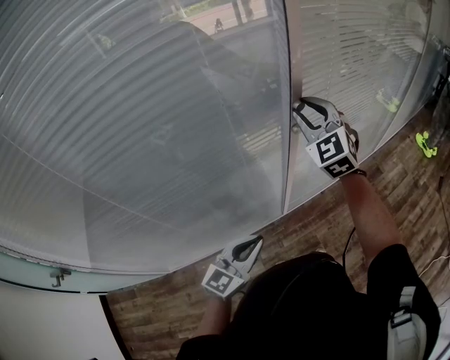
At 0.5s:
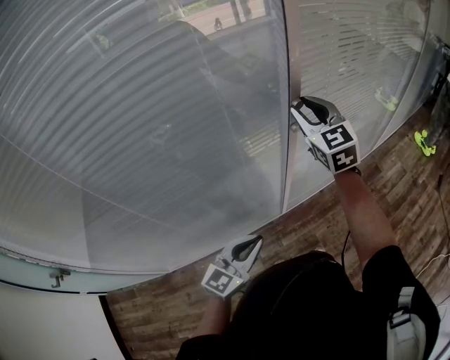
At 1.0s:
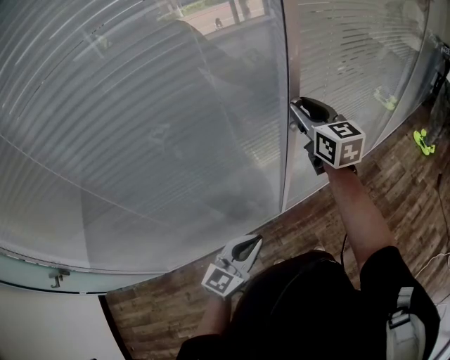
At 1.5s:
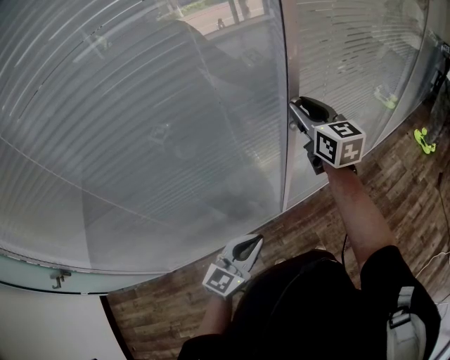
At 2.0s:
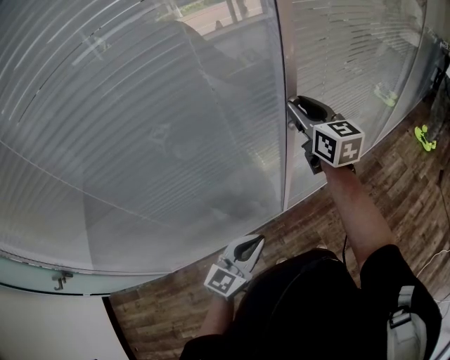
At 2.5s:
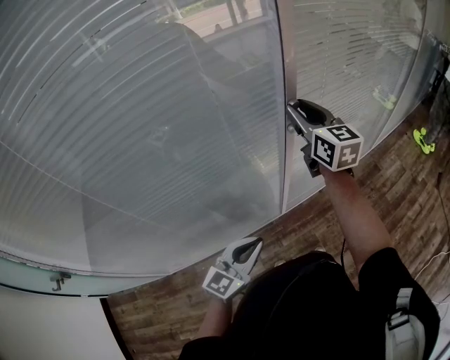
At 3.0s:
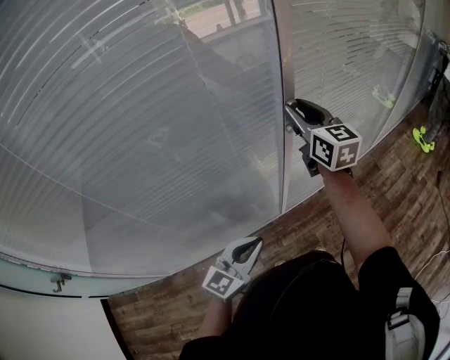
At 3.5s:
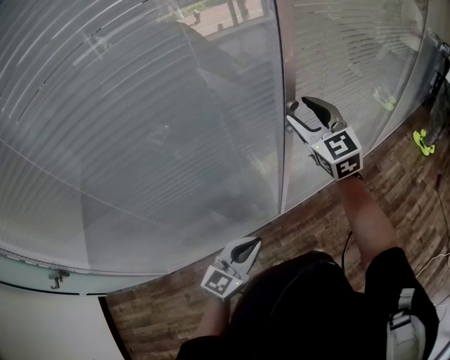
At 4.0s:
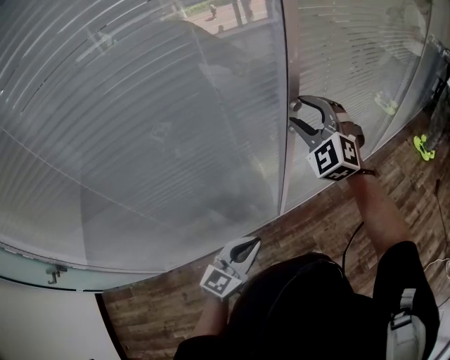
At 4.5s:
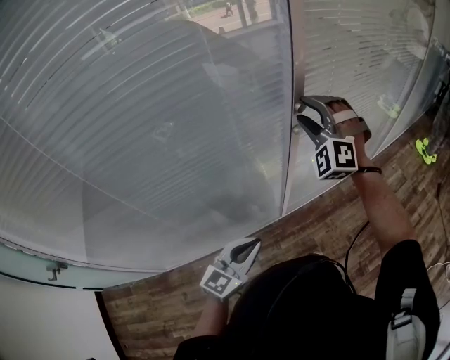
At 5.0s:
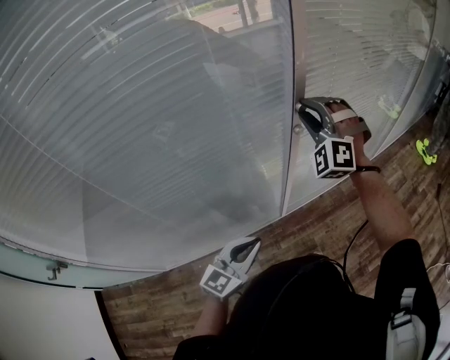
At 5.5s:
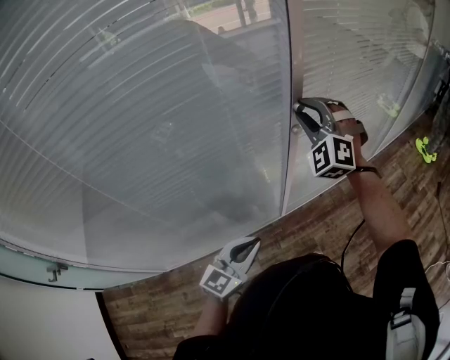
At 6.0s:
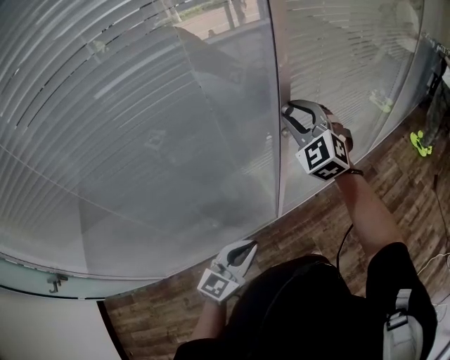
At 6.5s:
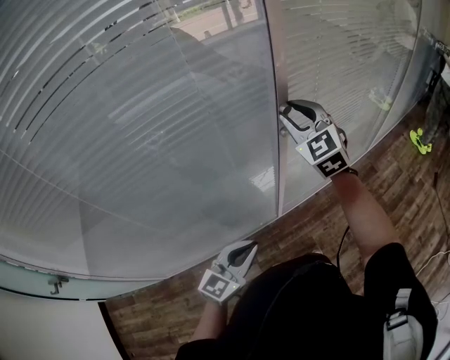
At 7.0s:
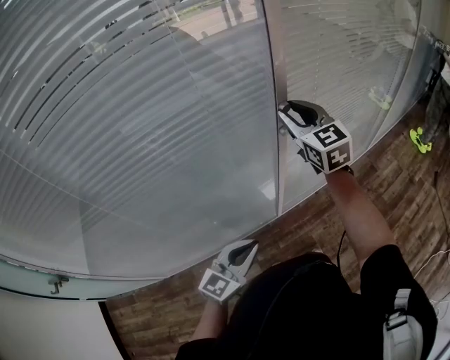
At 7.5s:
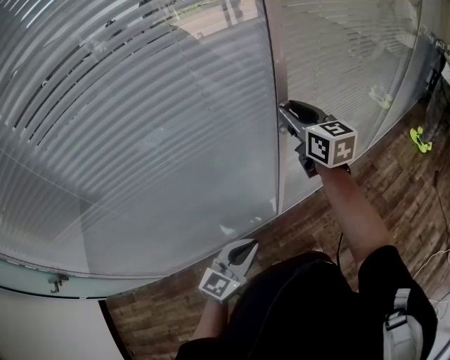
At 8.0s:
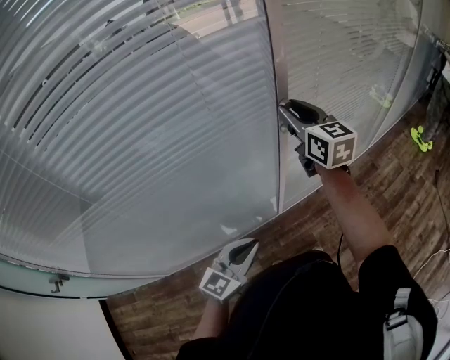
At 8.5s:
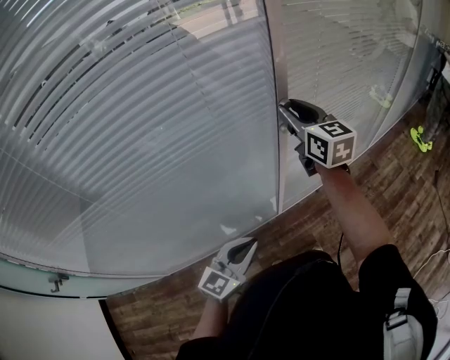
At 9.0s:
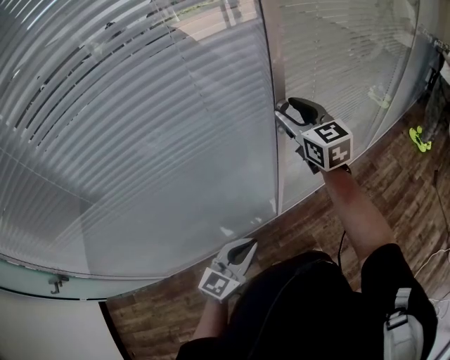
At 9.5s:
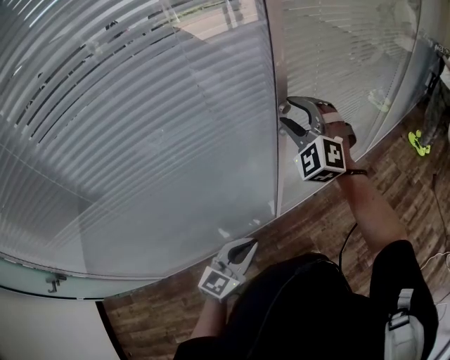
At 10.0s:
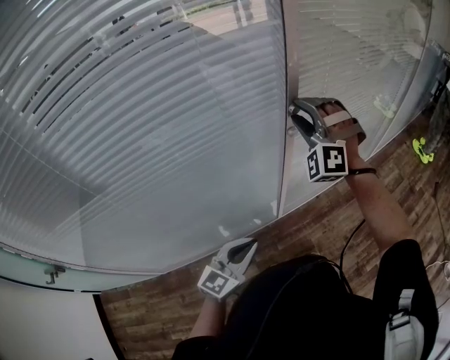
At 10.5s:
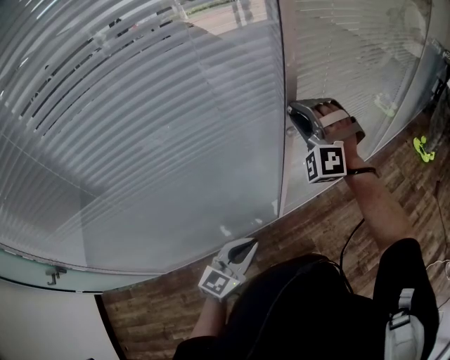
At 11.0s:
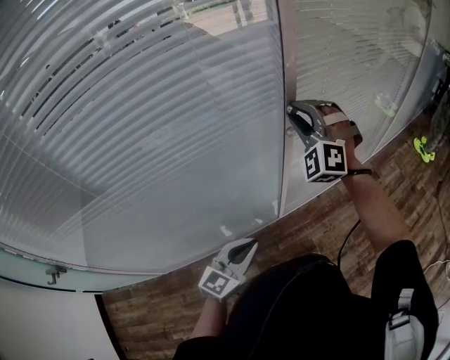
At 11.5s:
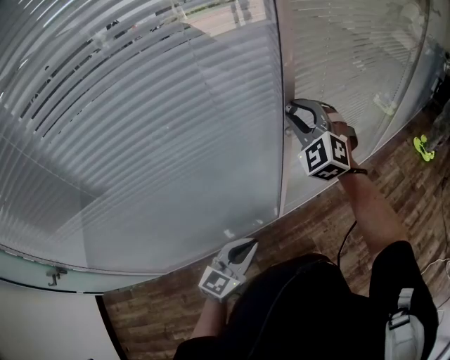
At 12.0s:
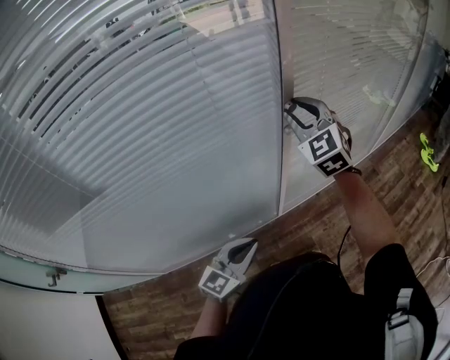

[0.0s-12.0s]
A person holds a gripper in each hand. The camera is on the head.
0.0s to 2.0s: The right gripper rotates around the line of its fingers by roughly 50 degrees, clockwise from behind.
2.0s to 4.0s: The right gripper rolls counterclockwise, seen from behind, by about 70 degrees, and opens.
4.0s to 6.0s: The right gripper closes its fingers.
6.0s to 8.0s: The right gripper rotates around the line of its fingers by some 60 degrees, clockwise from behind.
8.0s to 10.0s: The right gripper rotates around the line of its fingers by about 90 degrees, counterclockwise from behind.
10.0s to 12.0s: The right gripper rolls clockwise, seen from behind, by some 50 degrees.

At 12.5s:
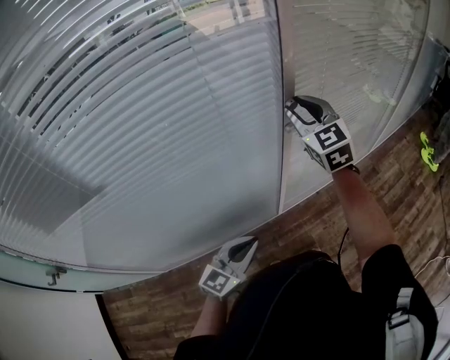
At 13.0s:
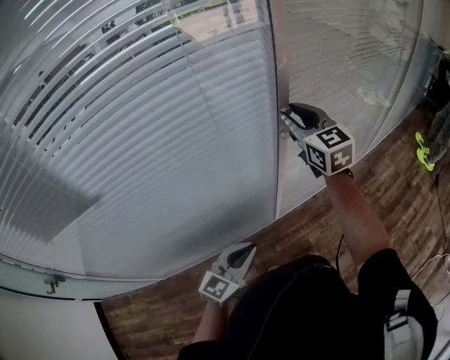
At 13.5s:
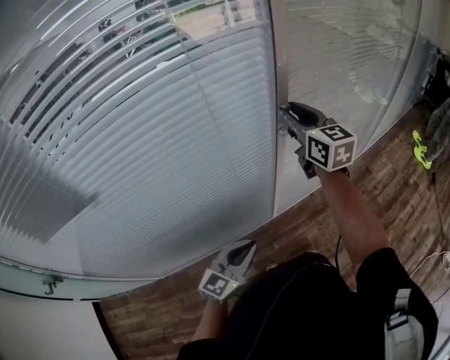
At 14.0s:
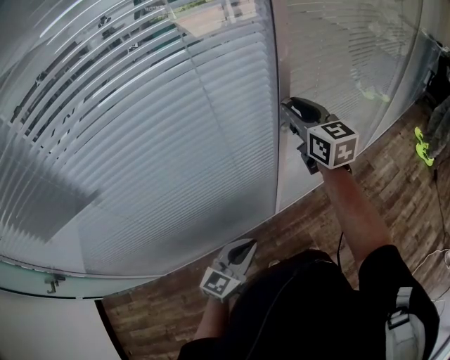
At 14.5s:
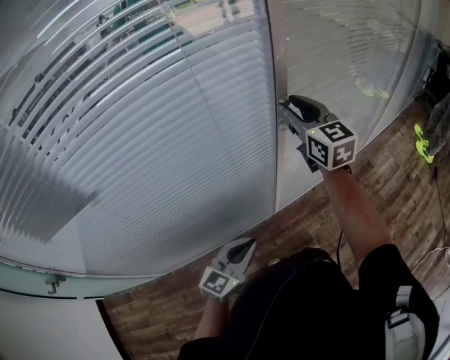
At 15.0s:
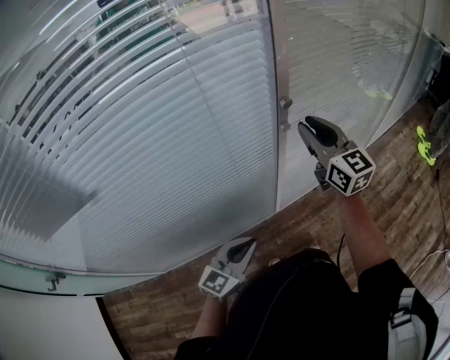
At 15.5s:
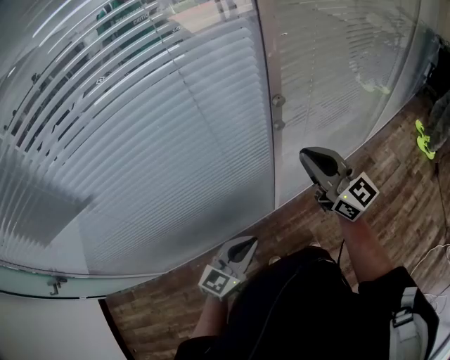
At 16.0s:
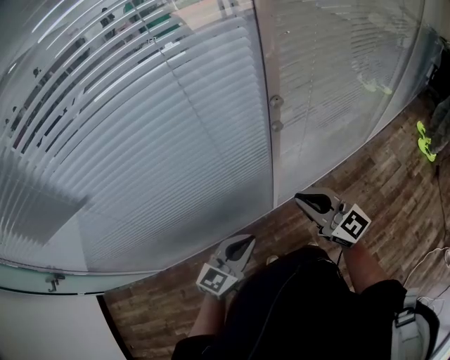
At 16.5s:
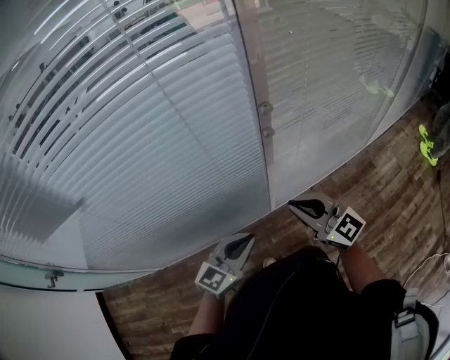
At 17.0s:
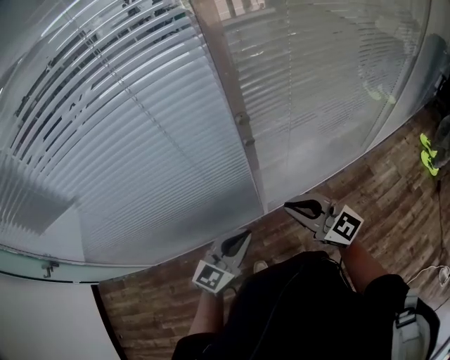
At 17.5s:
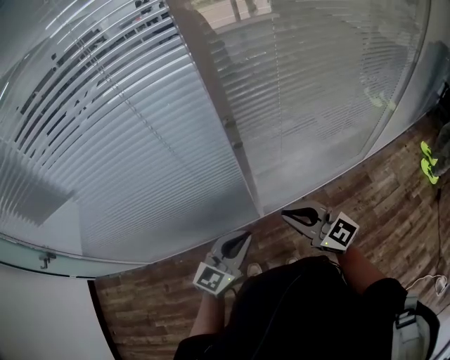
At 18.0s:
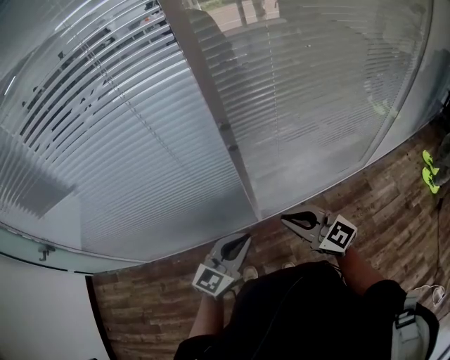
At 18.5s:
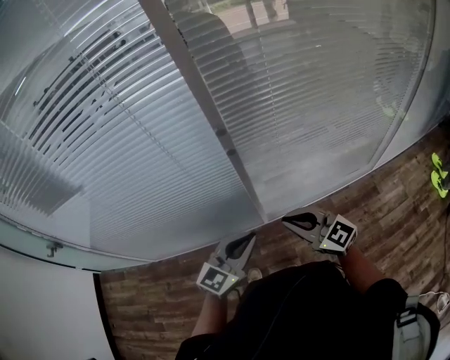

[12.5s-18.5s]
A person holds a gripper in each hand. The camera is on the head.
12.5s to 14.5s: The right gripper rotates some 20 degrees.
14.5s to 16.5s: The left gripper moves to the right, approximately 5 cm. The right gripper goes approximately 25 cm backward and downward, rotates roughly 30 degrees, and closes.
16.5s to 18.5s: The two grippers go approximately 10 cm to the right.

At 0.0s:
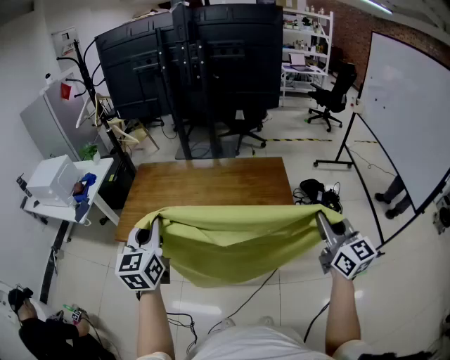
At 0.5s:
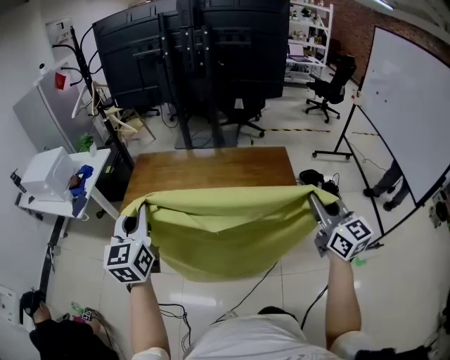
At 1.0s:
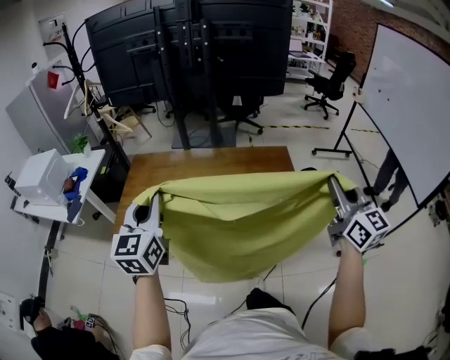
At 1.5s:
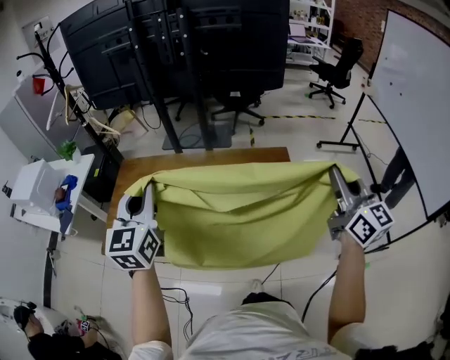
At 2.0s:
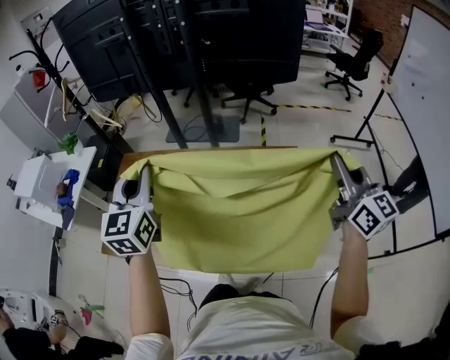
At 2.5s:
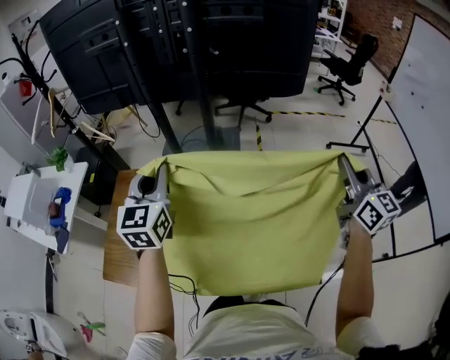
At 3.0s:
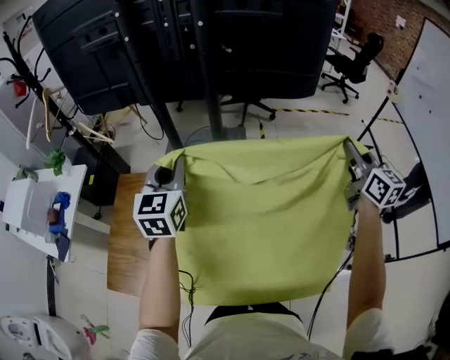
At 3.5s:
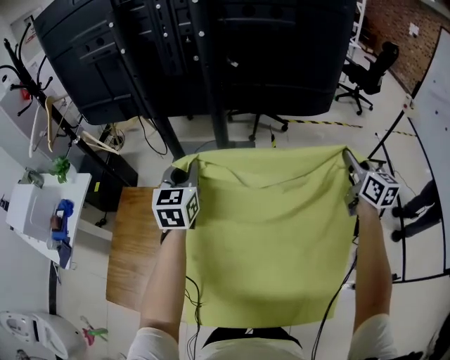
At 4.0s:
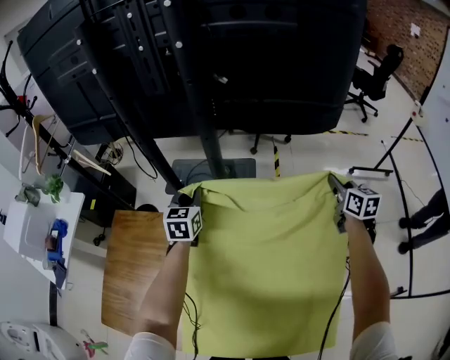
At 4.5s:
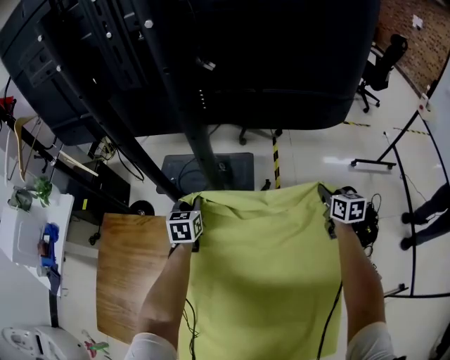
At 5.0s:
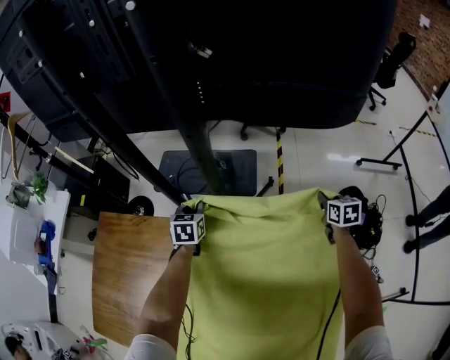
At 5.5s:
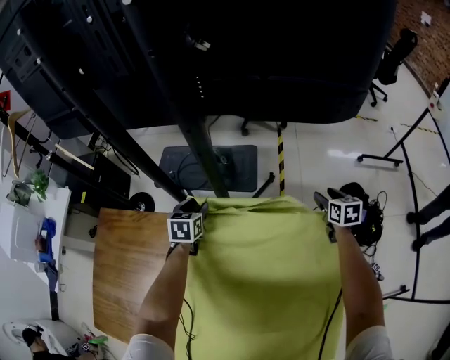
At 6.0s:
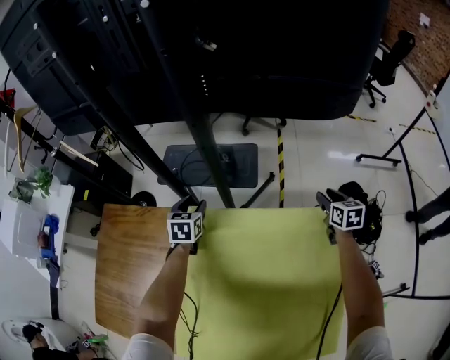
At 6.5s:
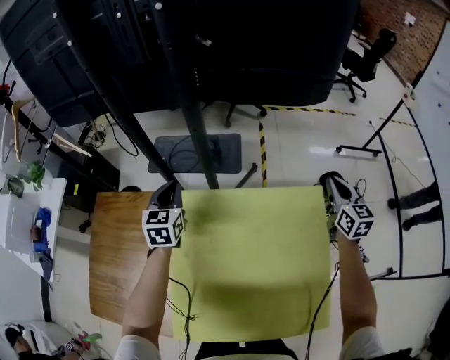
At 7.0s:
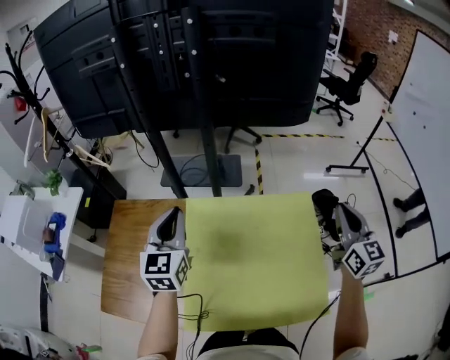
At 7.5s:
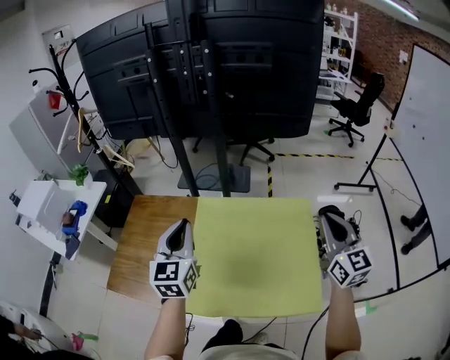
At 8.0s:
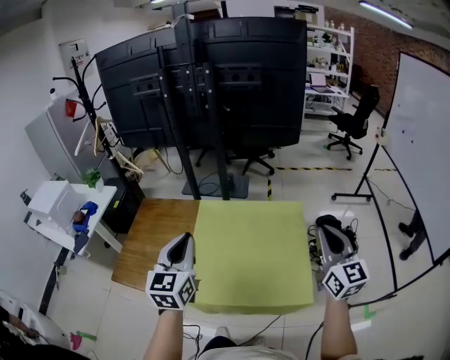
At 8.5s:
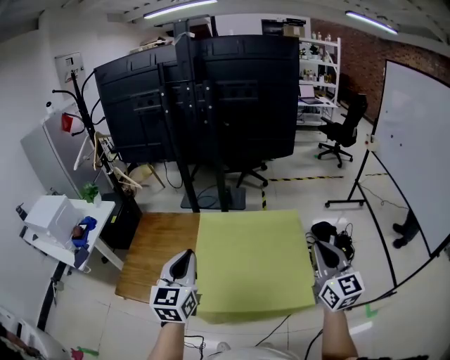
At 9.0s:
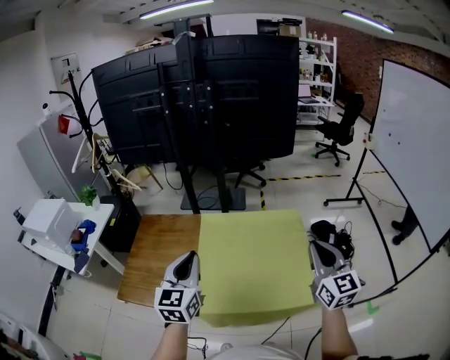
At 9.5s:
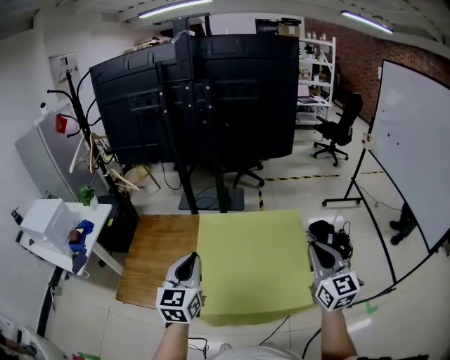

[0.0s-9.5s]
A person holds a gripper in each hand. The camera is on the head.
0.0s to 2.0s: The grippers both shift forward by some 30 cm.
2.0s to 4.0s: Both grippers move forward and downward, roughly 50 cm. The right gripper turns by about 30 degrees, while the left gripper turns by approximately 20 degrees.
4.0s to 5.5s: Both grippers travel together downward, roughly 20 cm. The left gripper turns by about 20 degrees, and opens its fingers, while the right gripper changes its angle by some 20 degrees, and opens.
5.5s to 7.5s: The two grippers travel together, backward, approximately 40 cm. Both grippers move upward, approximately 40 cm. The left gripper tilts its fingers approximately 40 degrees upward, and closes. Meanwhile the right gripper tips its fingers upward by roughly 40 degrees, and closes its fingers.
7.5s to 9.5s: Both grippers move backward, some 15 cm.
